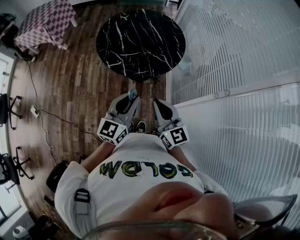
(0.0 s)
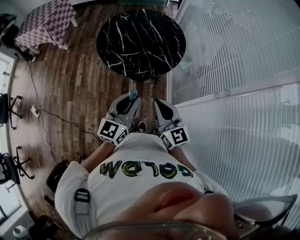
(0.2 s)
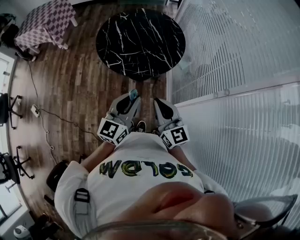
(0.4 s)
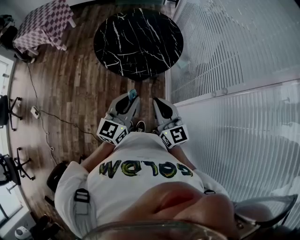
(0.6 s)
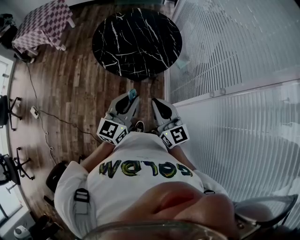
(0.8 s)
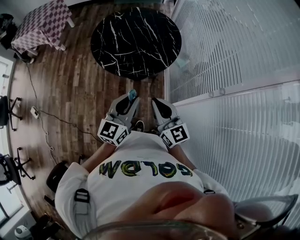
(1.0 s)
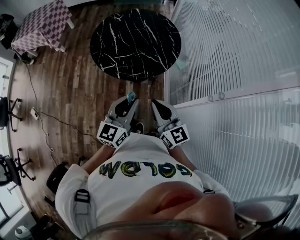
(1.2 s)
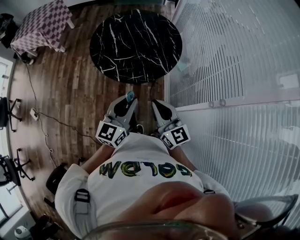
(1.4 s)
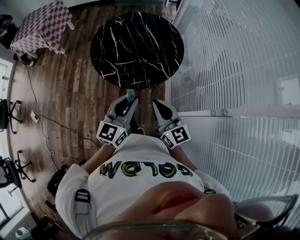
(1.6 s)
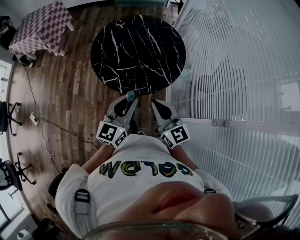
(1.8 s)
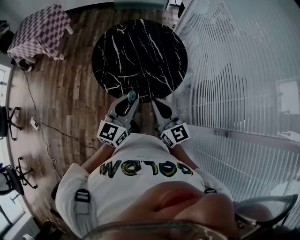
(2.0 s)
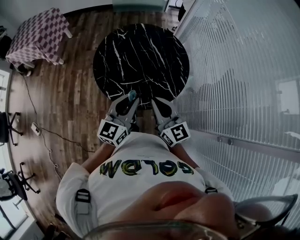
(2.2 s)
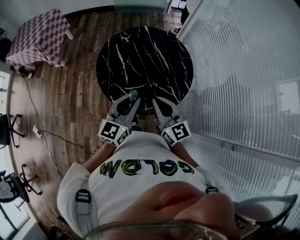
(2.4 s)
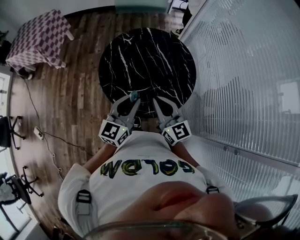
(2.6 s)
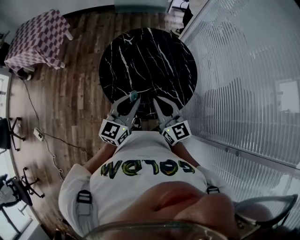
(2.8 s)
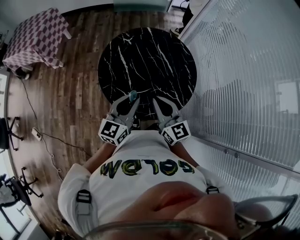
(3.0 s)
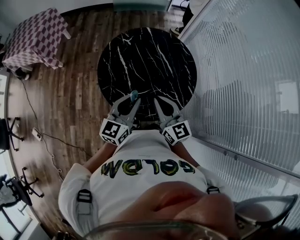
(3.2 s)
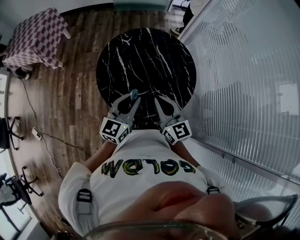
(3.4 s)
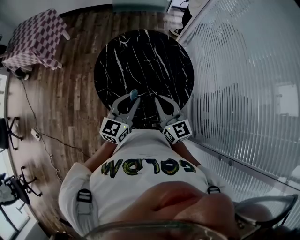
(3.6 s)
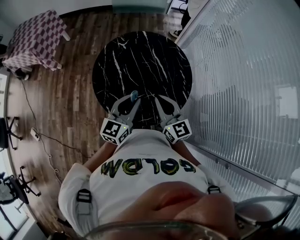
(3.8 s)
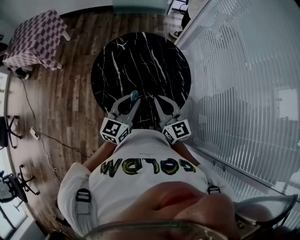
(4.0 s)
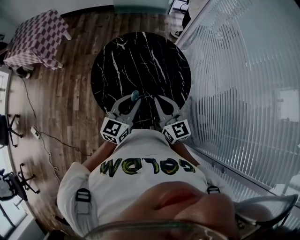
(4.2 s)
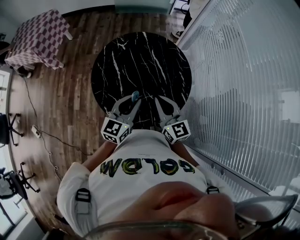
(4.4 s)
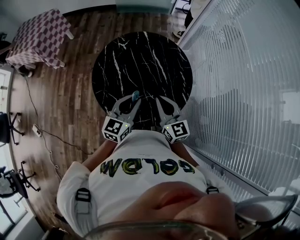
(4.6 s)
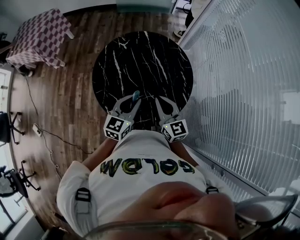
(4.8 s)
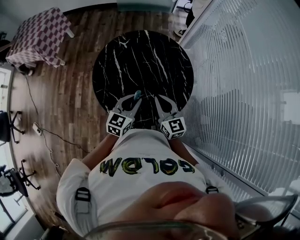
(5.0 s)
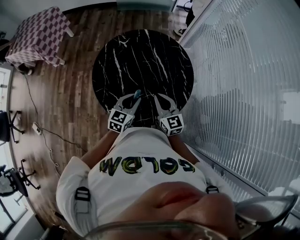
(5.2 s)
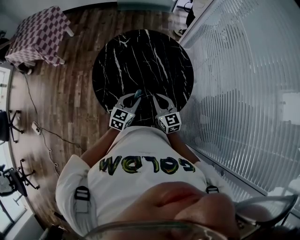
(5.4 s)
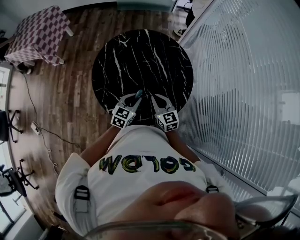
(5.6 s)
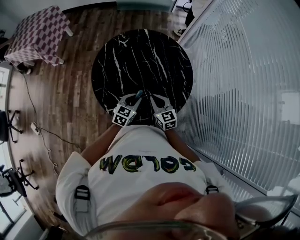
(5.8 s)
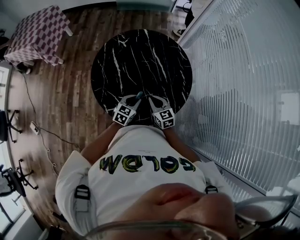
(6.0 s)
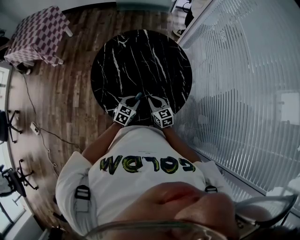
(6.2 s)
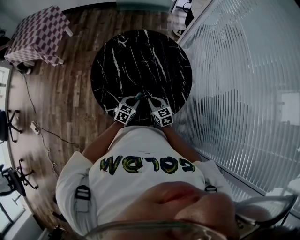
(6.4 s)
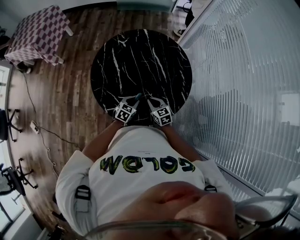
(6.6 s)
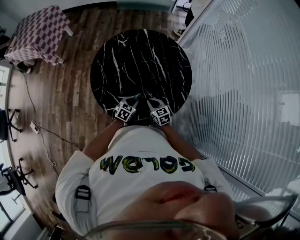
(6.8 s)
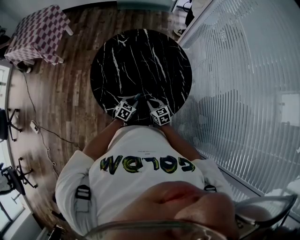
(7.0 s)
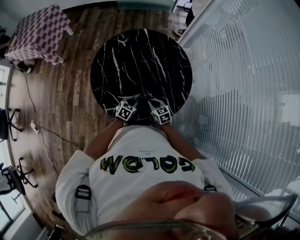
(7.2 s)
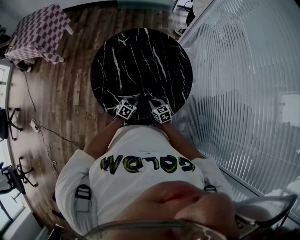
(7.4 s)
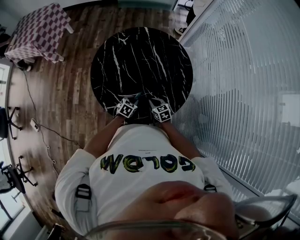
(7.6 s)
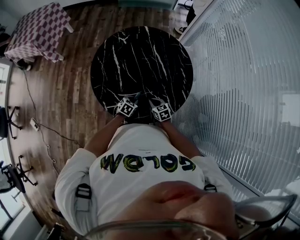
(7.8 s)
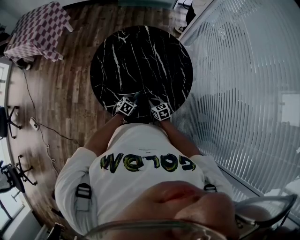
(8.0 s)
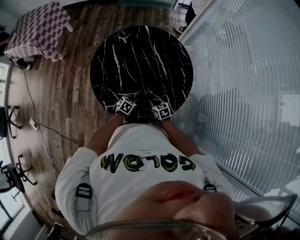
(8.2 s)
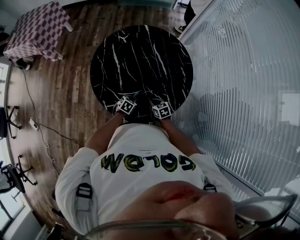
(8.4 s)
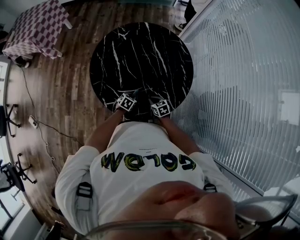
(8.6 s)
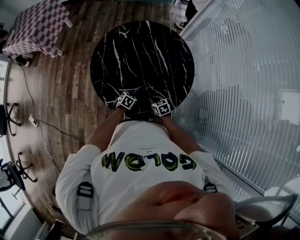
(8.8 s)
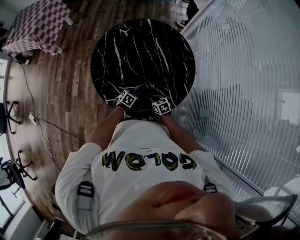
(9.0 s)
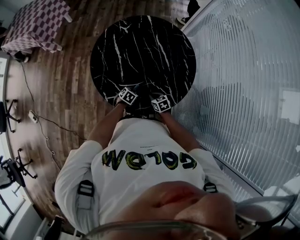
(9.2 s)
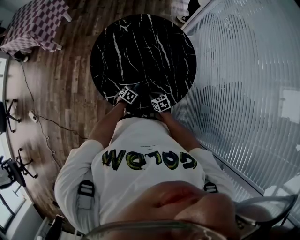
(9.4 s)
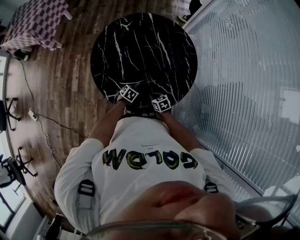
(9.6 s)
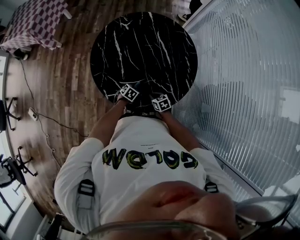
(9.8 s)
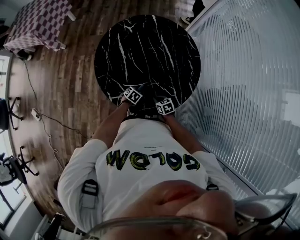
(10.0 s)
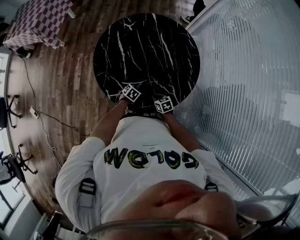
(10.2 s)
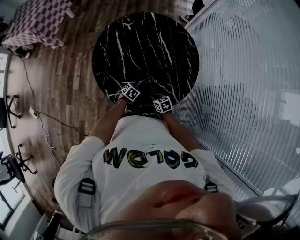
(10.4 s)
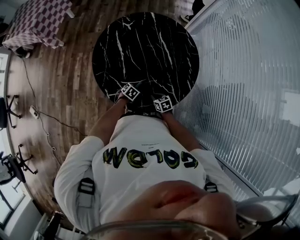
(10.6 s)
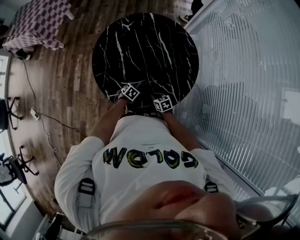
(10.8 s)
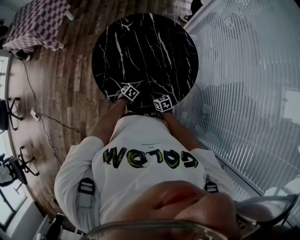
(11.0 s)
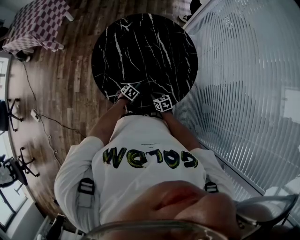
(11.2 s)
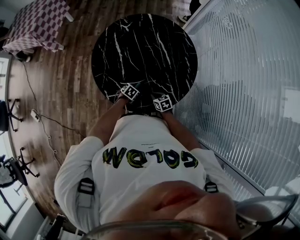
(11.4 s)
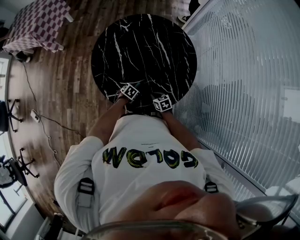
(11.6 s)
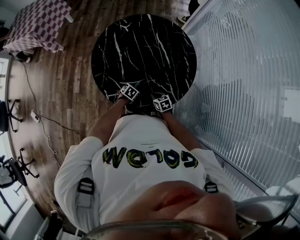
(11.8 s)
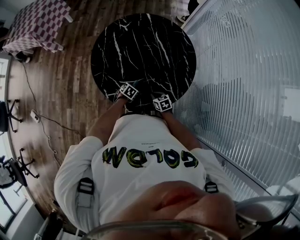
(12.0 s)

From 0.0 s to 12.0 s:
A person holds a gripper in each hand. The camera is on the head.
From 0.0 s to 1.6 s: Both grippers move forward, about 10 cm.
From 1.6 s to 3.0 s: The grippers both shift forward and to the left by about 30 cm.
From 3.0 s to 4.4 s: The two grippers go about 10 cm to the right and forward.
From 4.4 s to 6.0 s: The grippers both shift downward by approximately 20 cm. The right gripper turns by approximately 20 degrees, while the left gripper rotates about 30 degrees.
From 6.0 s to 7.6 s: Both grippers travel together downward, some 15 cm.
From 7.6 s to 9.0 s: The two grippers go roughly 5 cm downward.
From 9.0 s to 10.4 s: The grippers make only small movements.
From 10.4 s to 12.0 s: The left gripper opens up.

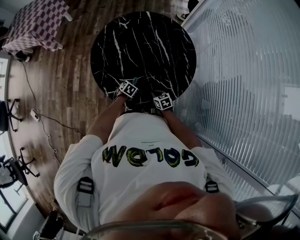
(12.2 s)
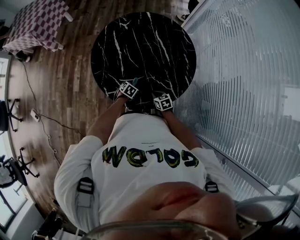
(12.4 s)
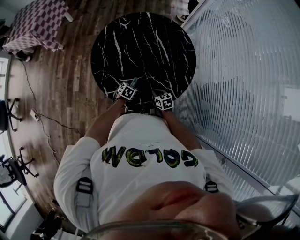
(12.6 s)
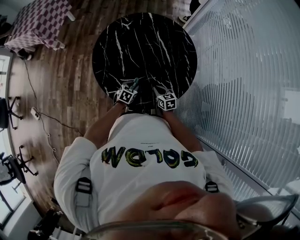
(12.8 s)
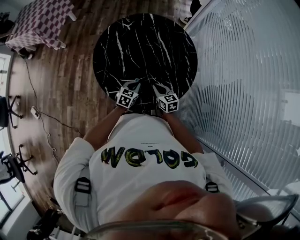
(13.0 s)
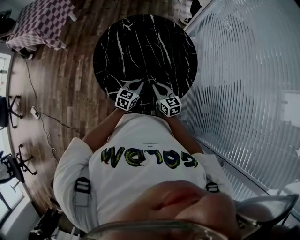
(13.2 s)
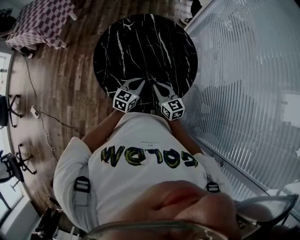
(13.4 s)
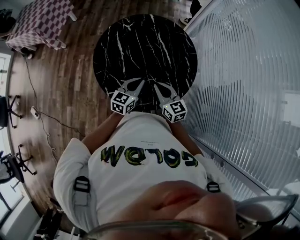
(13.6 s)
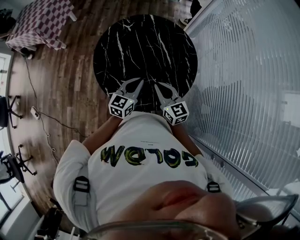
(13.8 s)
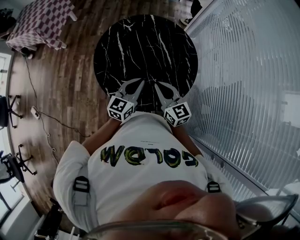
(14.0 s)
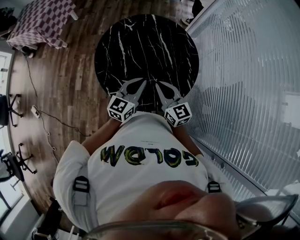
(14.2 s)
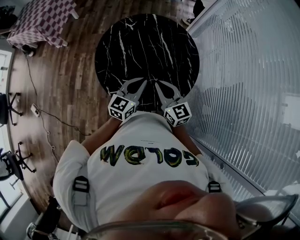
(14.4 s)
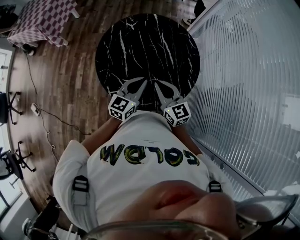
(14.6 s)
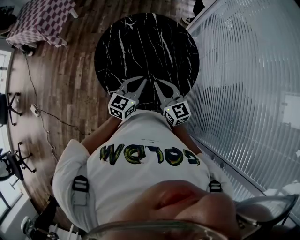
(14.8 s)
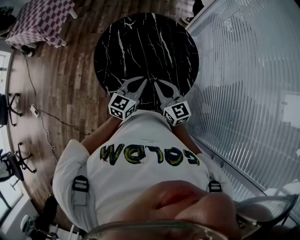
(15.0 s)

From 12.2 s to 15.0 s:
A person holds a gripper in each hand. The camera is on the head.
From 12.2 s to 13.6 s: Both grippers travel together upward, roughly 30 cm. The right gripper tilts its fingers some 40 degrees upward. The left gripper tilts its fingers some 50 degrees upward, and closes.
From 13.6 s to 15.0 s: Both grippers travel together upward, roughly 5 cm.

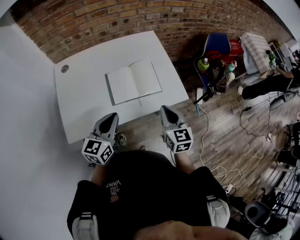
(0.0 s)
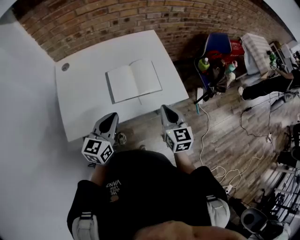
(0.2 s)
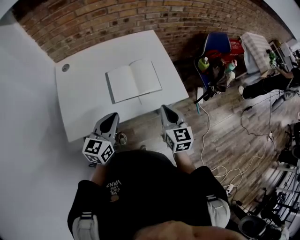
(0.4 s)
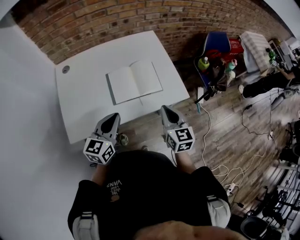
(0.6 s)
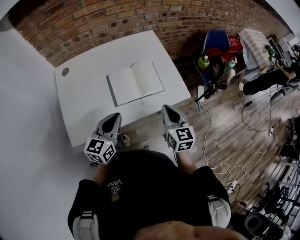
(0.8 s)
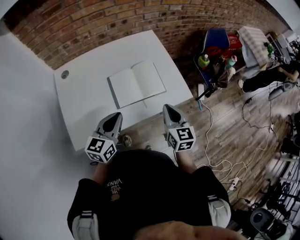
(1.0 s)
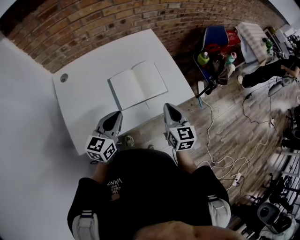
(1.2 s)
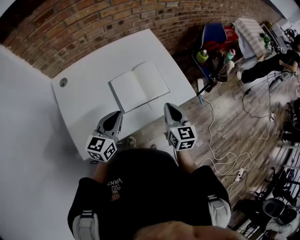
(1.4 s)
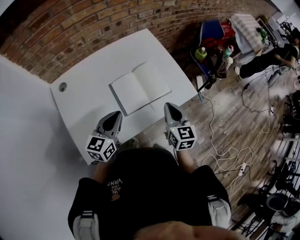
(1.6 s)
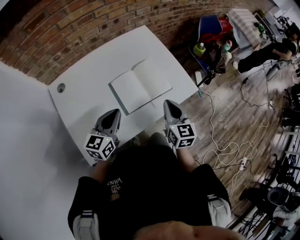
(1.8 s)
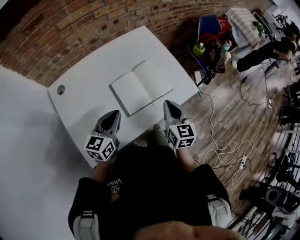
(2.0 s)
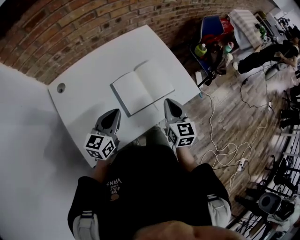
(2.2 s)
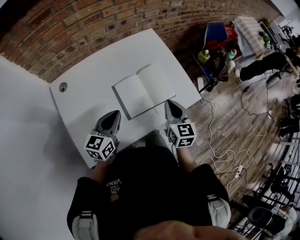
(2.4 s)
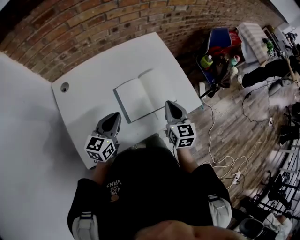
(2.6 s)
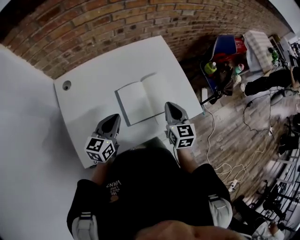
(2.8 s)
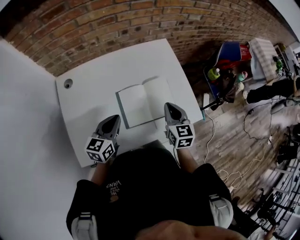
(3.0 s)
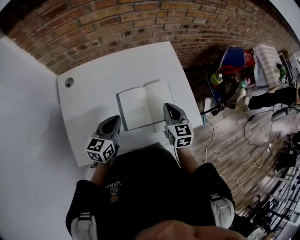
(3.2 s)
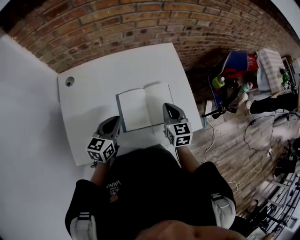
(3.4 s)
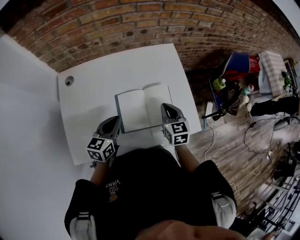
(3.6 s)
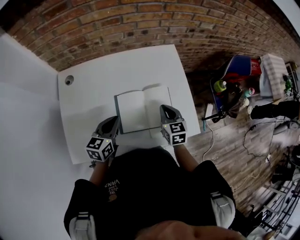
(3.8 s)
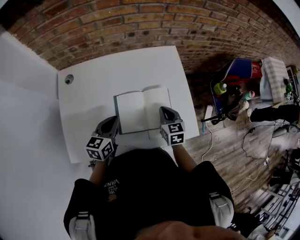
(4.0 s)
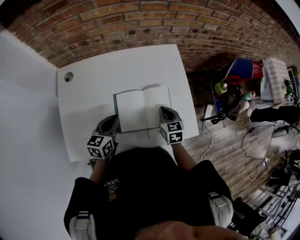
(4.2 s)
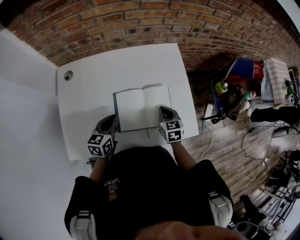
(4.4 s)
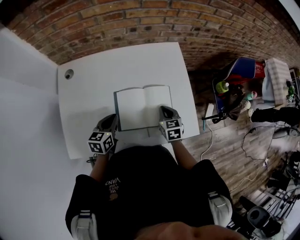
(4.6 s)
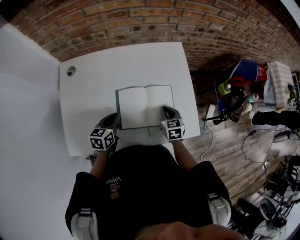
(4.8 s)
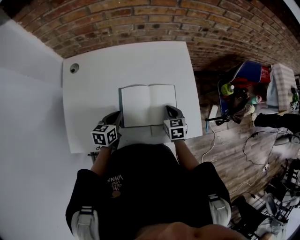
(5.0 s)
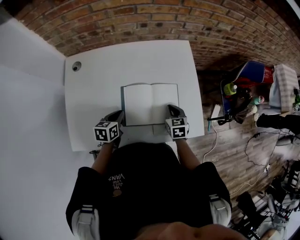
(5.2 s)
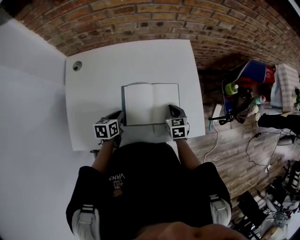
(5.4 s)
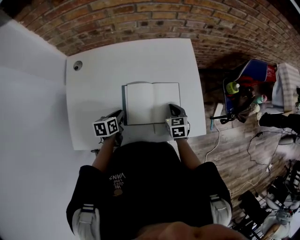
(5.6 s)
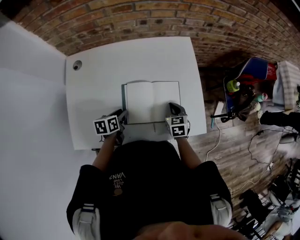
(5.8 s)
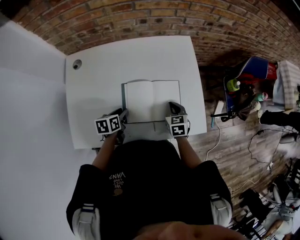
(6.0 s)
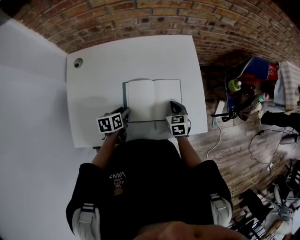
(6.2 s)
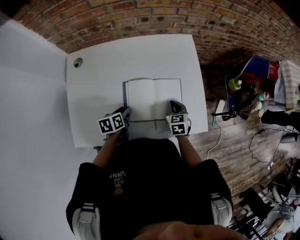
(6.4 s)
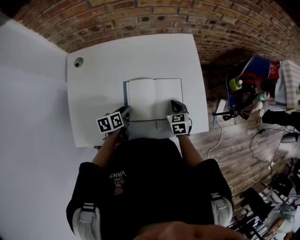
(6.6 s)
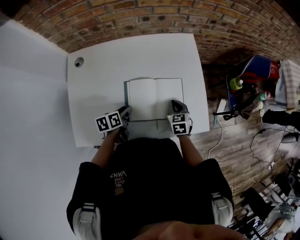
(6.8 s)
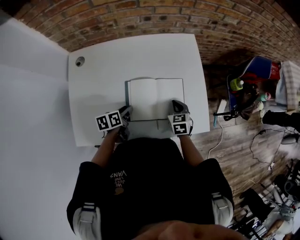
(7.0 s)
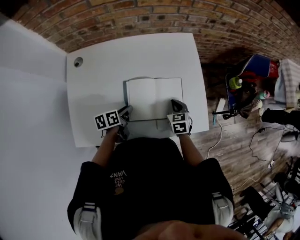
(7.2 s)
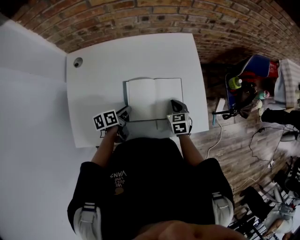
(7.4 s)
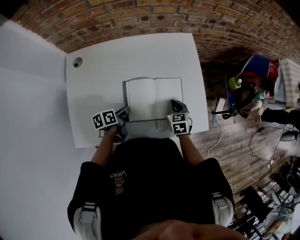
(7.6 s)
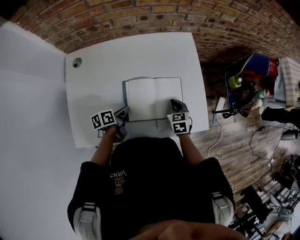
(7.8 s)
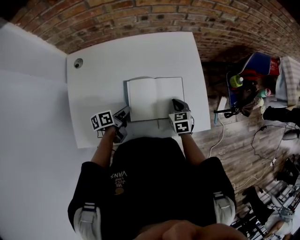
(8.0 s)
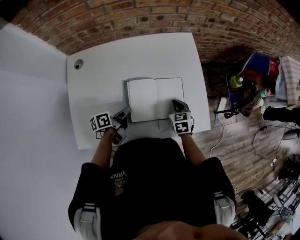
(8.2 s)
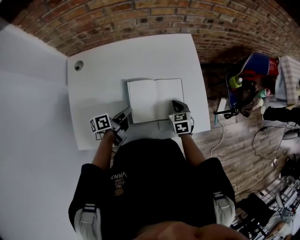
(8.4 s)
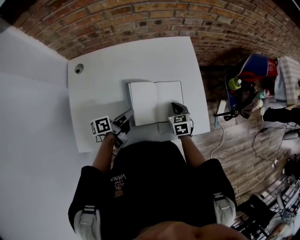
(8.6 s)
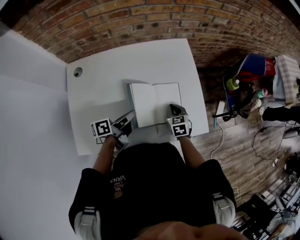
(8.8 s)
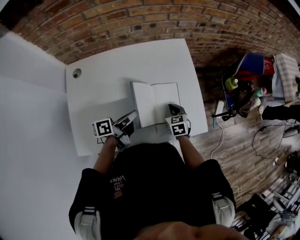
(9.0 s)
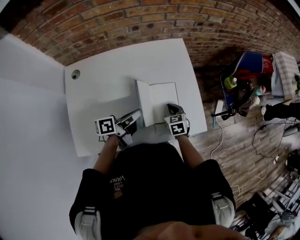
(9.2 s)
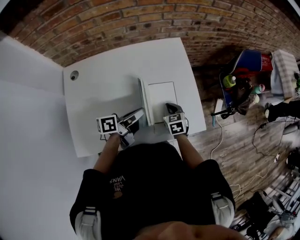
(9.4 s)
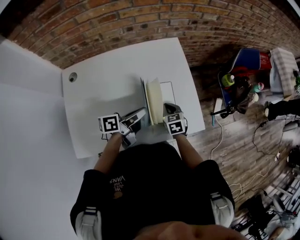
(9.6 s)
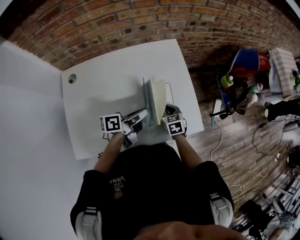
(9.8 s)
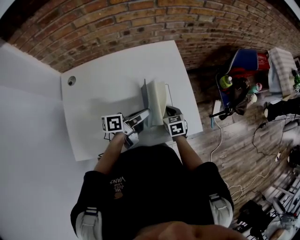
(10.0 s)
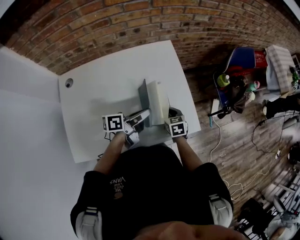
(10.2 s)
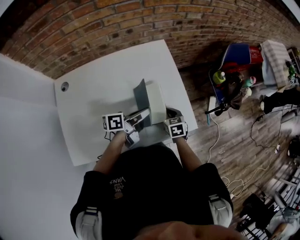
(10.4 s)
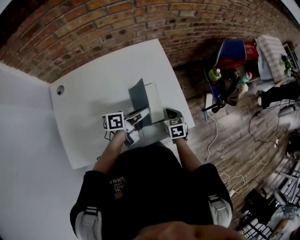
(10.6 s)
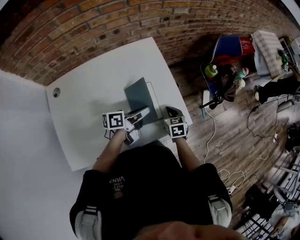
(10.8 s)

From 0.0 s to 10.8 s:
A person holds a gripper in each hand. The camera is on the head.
From 0.0 s to 1.6 s: The right gripper heads to the left, covering some 5 cm; the left gripper heads forward and to the left, covering approximately 10 cm.
From 1.6 s to 3.0 s: The left gripper goes roughly 5 cm forward; the right gripper travels forward by some 10 cm.
From 3.0 s to 4.6 s: The left gripper heads downward, covering about 10 cm, while the right gripper travels downward and forward by approximately 15 cm, and turns by about 20 degrees.
From 4.6 s to 6.2 s: The left gripper is displaced downward by some 5 cm, changes its angle by approximately 30 degrees, and opens its fingers.
From 6.2 s to 7.8 s: The left gripper turns by about 20 degrees, and closes.
From 7.8 s to 9.2 s: The left gripper goes approximately 15 cm upward and to the right, and swivels approximately 30 degrees.
From 9.2 s to 10.8 s: The left gripper travels to the right and forward by roughly 15 cm. The right gripper is displaced to the right by about 10 cm.
